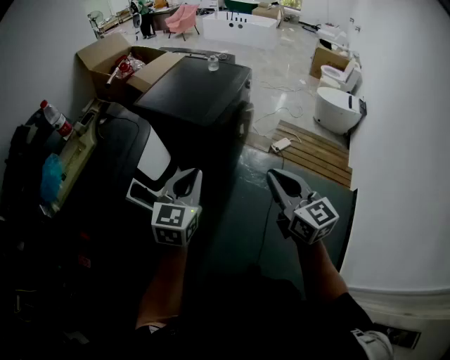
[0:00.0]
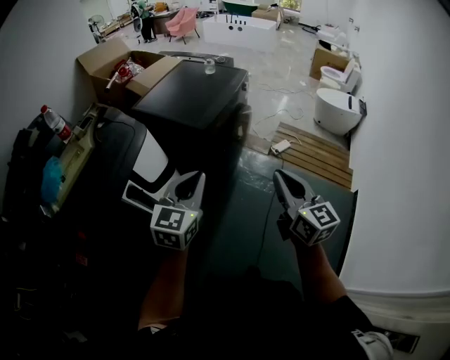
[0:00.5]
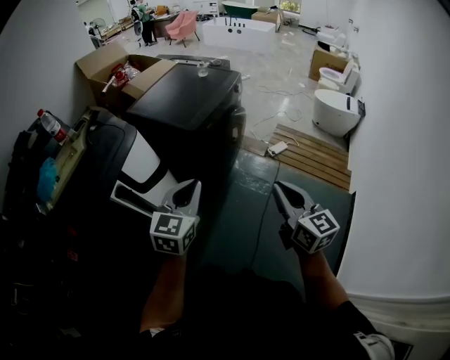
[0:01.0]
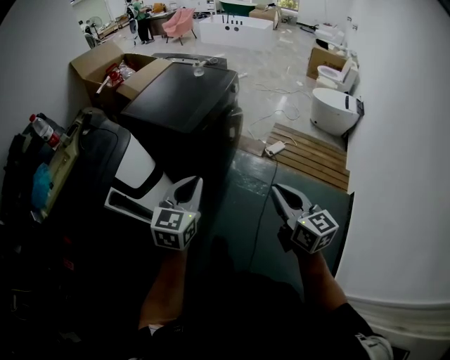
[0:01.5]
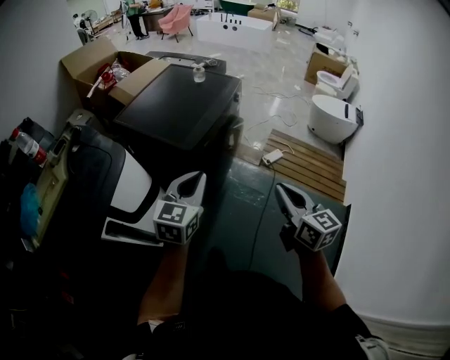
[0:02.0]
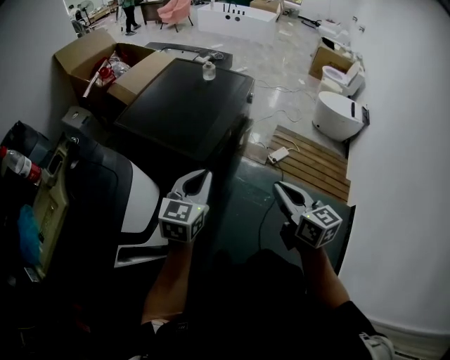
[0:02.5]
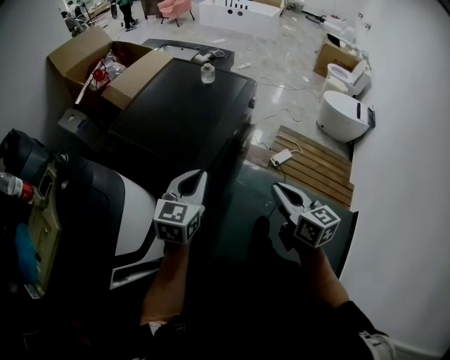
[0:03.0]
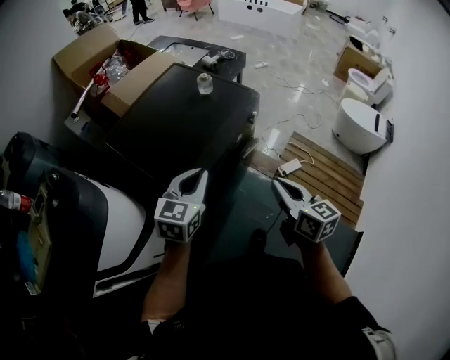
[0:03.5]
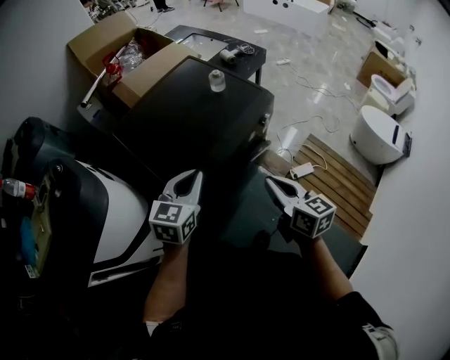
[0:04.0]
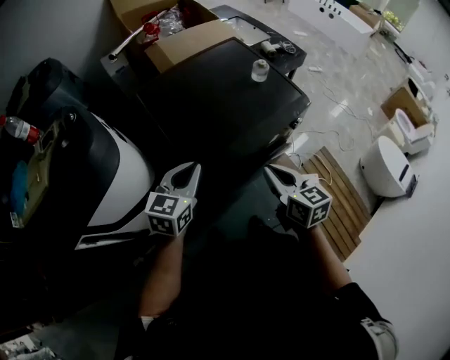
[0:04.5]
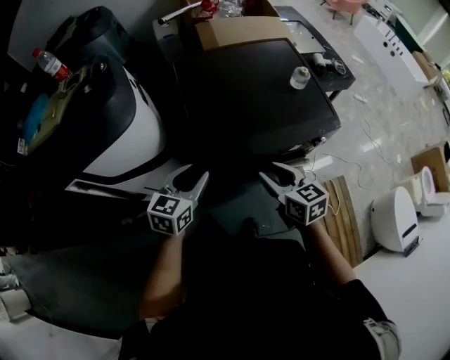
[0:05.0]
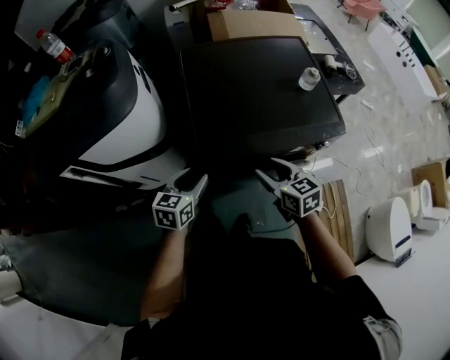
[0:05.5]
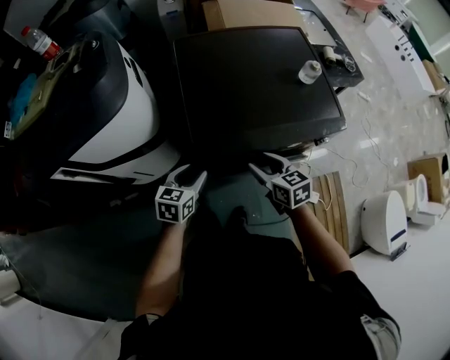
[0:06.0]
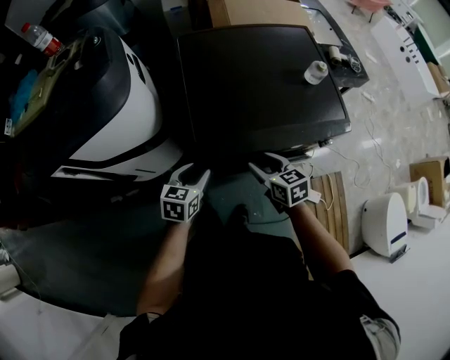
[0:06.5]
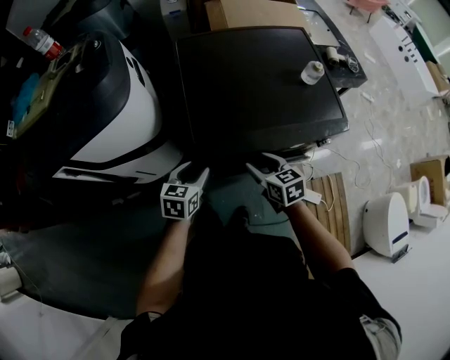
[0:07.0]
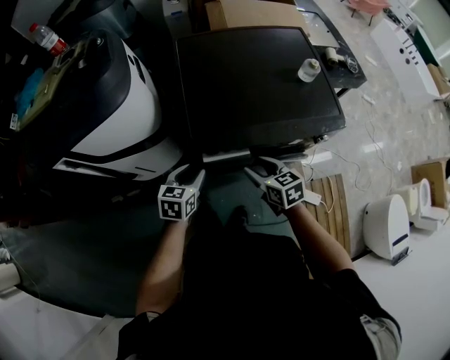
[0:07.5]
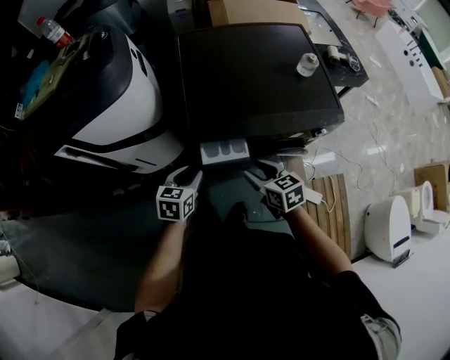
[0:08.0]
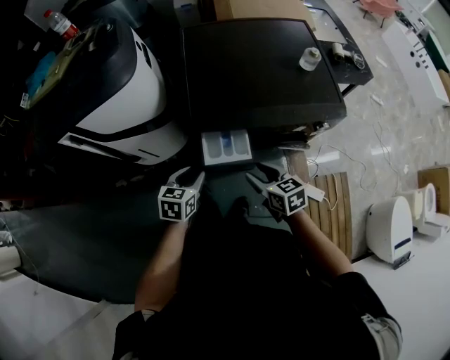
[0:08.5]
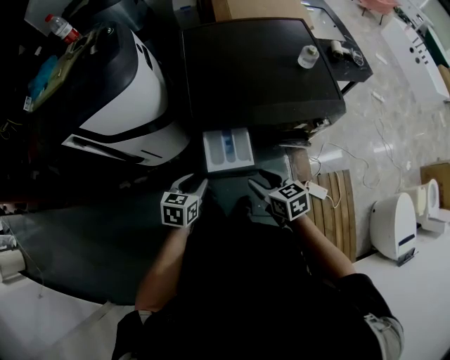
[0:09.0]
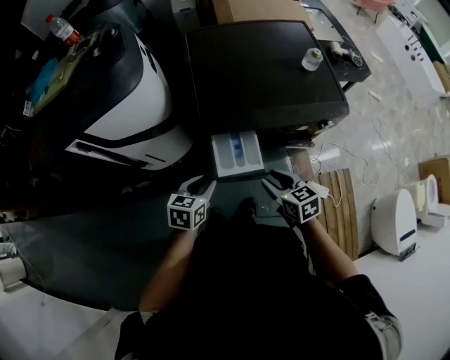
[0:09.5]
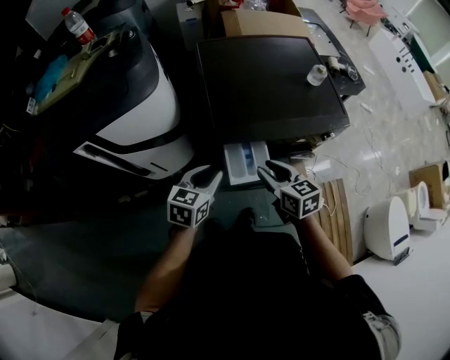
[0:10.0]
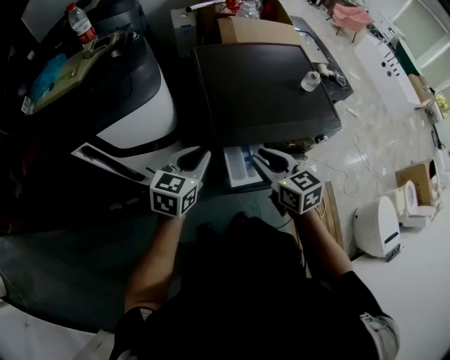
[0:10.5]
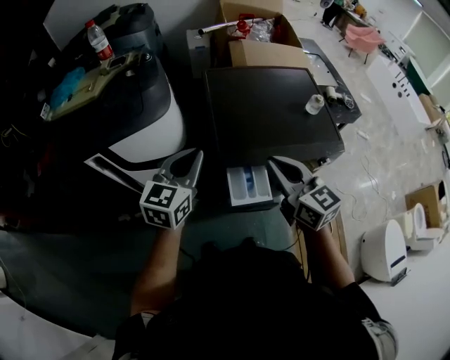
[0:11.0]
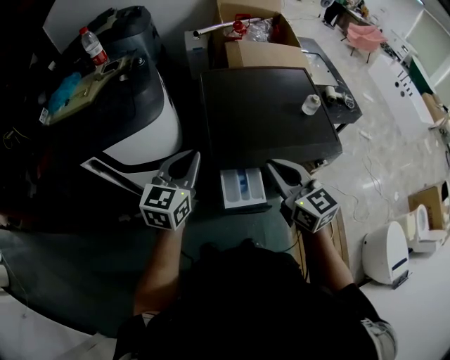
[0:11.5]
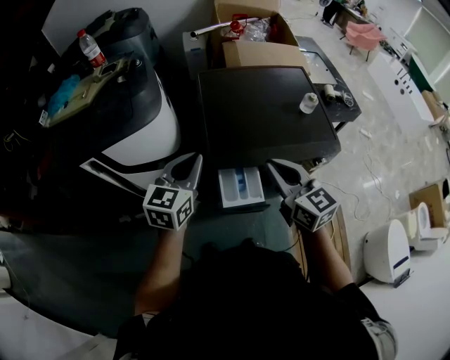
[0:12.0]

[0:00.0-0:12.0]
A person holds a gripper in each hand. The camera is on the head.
0:00.0 to 0:02.0: Both grippers travel together forward and to the right, some 15 cm.
0:02.0 to 0:04.0: The two grippers go approximately 35 cm forward. The right gripper swivels approximately 20 degrees.
0:04.0 to 0:06.0: The right gripper changes place by some 20 cm, changes its angle by some 50 degrees, and opens its fingers. The left gripper shifts approximately 20 cm downward, changes its angle by roughly 40 degrees, and opens.
0:06.0 to 0:08.0: The grippers both shift backward by about 5 cm.
0:08.0 to 0:10.0: The right gripper goes about 10 cm upward and to the left, while the left gripper is displaced upward by some 10 cm.
0:10.0 to 0:12.0: The grippers both shift upward by some 15 cm. The left gripper swivels approximately 20 degrees, and closes up; the right gripper changes its angle by approximately 20 degrees, and closes up.

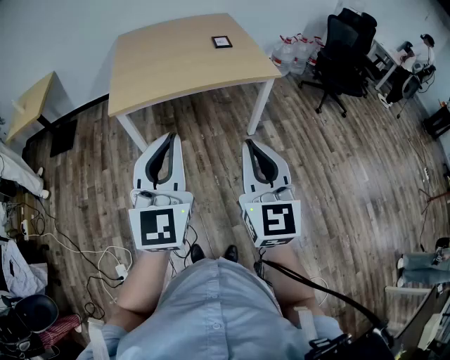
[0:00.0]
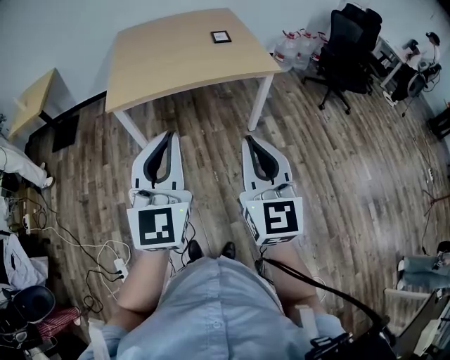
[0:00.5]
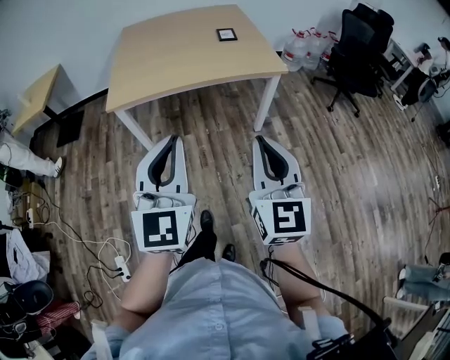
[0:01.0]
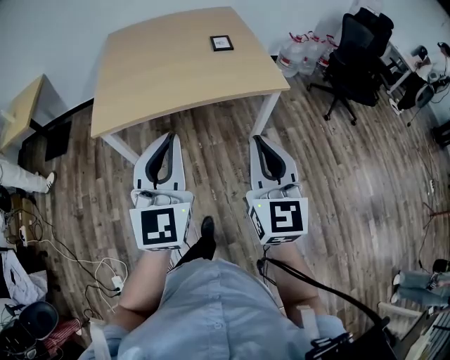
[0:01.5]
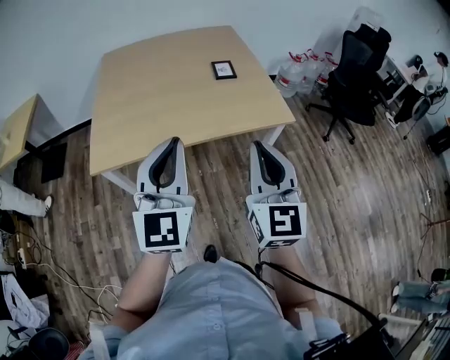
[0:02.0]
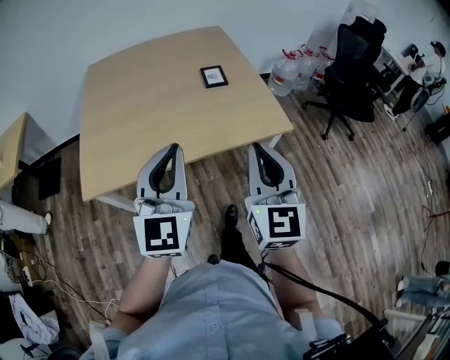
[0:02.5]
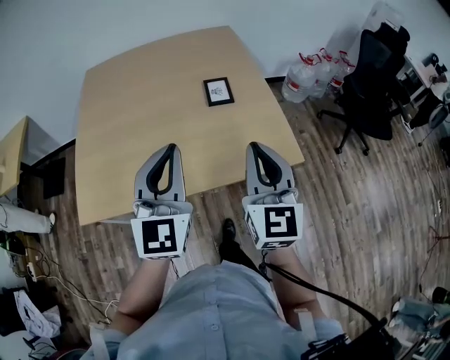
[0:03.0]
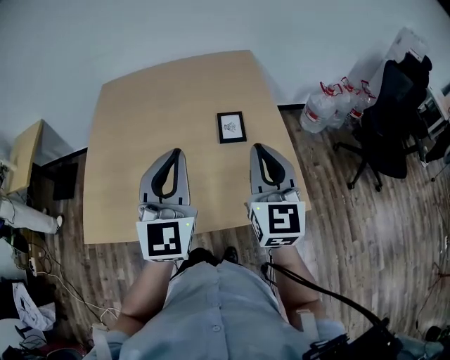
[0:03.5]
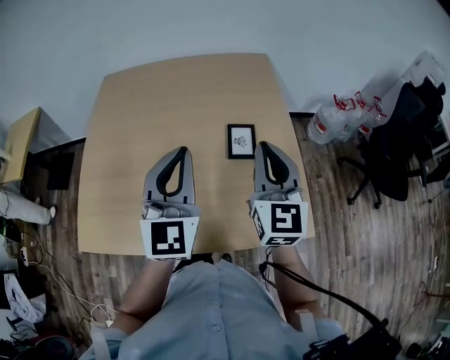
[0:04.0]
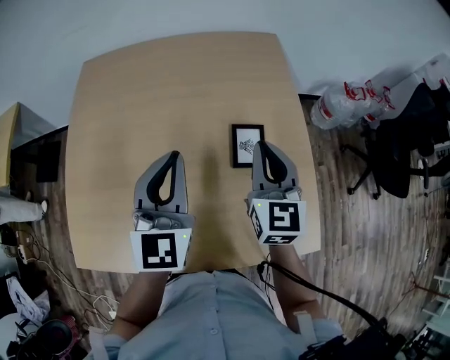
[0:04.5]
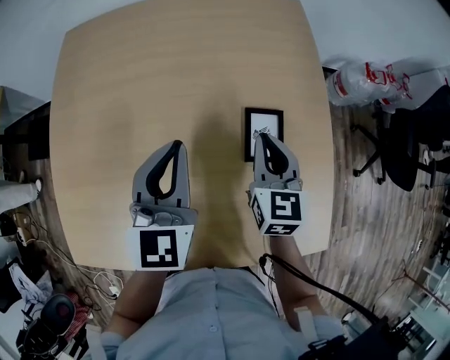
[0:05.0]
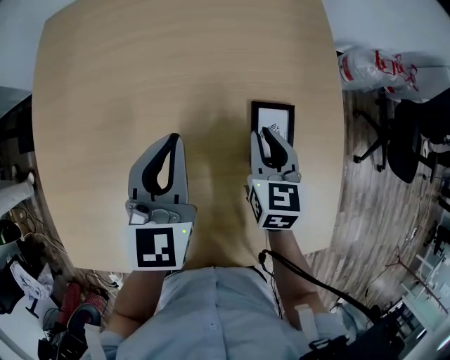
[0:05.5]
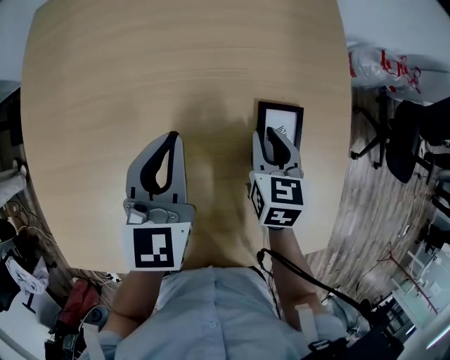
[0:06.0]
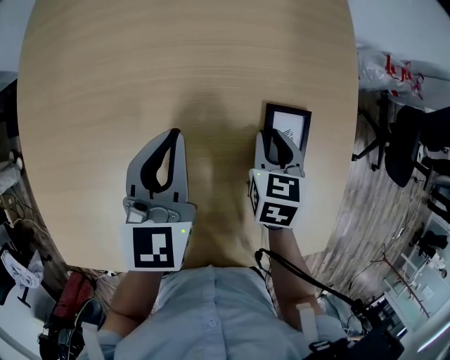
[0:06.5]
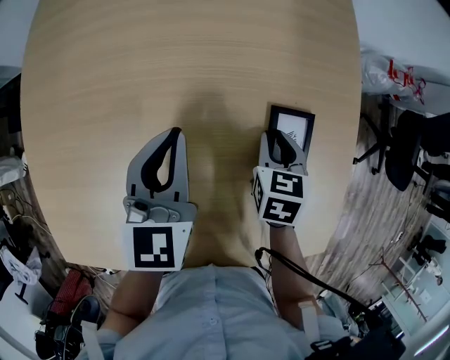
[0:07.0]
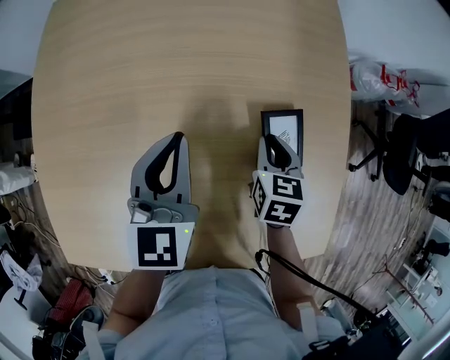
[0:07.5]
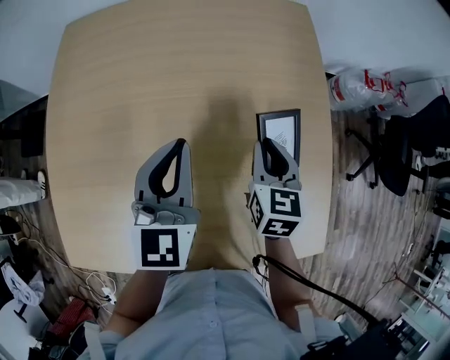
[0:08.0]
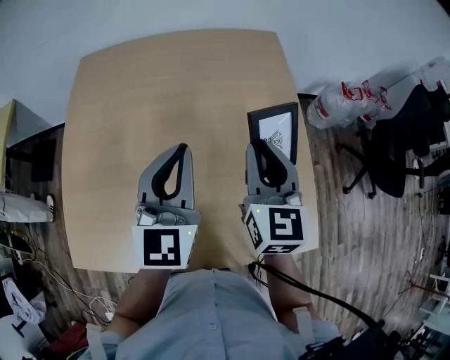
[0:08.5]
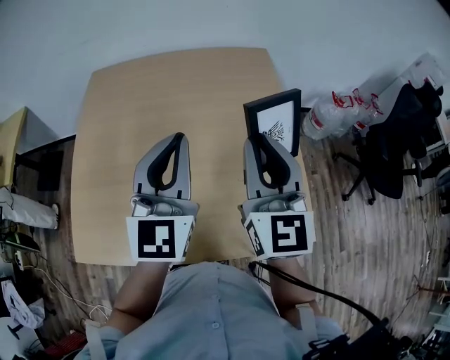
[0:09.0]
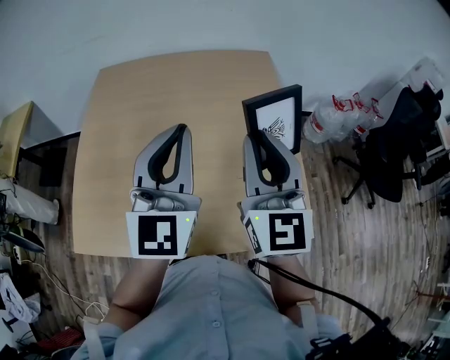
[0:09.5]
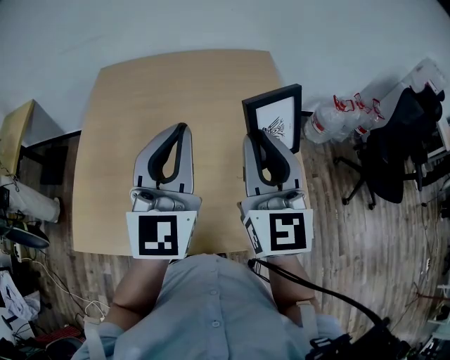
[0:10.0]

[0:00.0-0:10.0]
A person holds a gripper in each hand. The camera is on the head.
0:00.0 to 0:02.0: Both grippers travel together forward, approximately 25 cm.
0:02.0 to 0:04.0: Both grippers move forward, approximately 40 cm.
0:04.0 to 0:06.0: The right gripper is displaced downward and forward by roughly 25 cm, points its fingers roughly 40 degrees further downward, and opens its fingers; the left gripper heads downward, forward and to the left, covering about 20 cm, and rotates roughly 30 degrees.
0:06.0 to 0:08.0: The grippers both shift upward by about 5 cm.
0:08.0 to 0:10.0: The left gripper moves upward, backward and to the right, some 20 cm, and changes its angle by about 20 degrees, while the right gripper travels upward and backward by some 25 cm, and angles its fingers upward, by roughly 40 degrees.

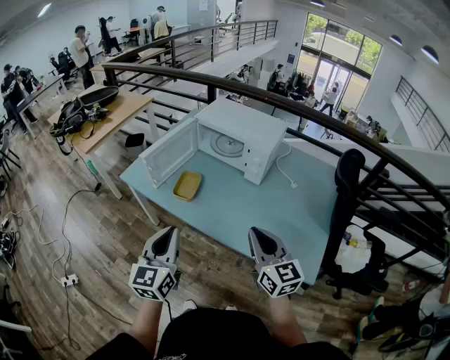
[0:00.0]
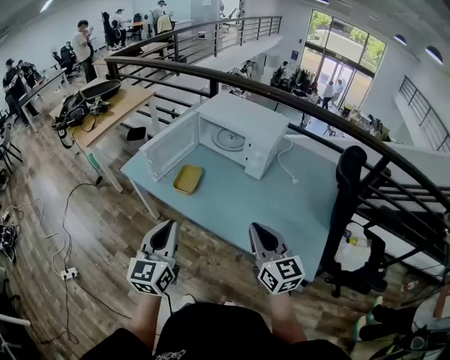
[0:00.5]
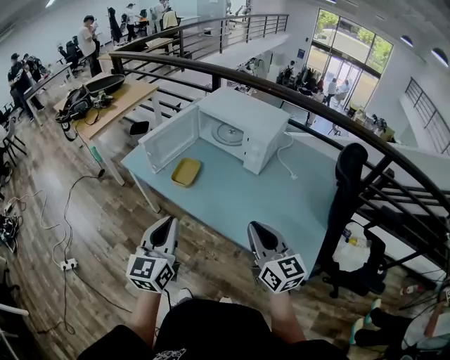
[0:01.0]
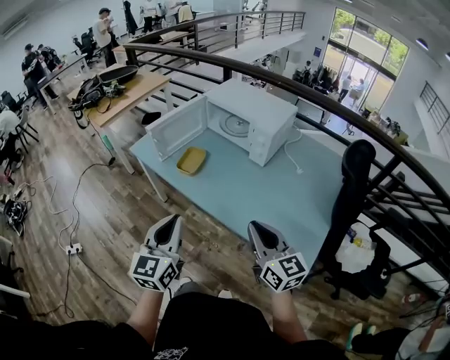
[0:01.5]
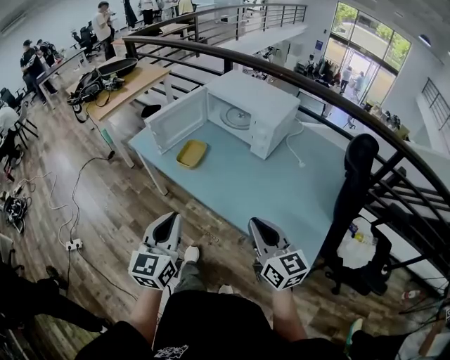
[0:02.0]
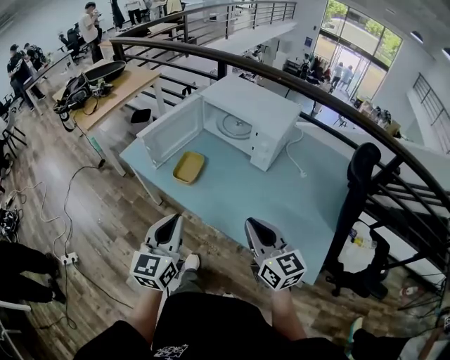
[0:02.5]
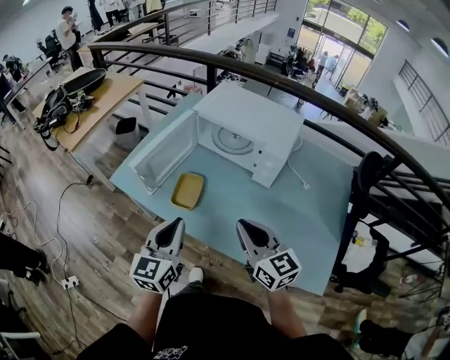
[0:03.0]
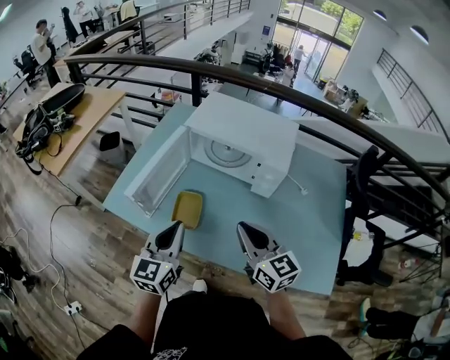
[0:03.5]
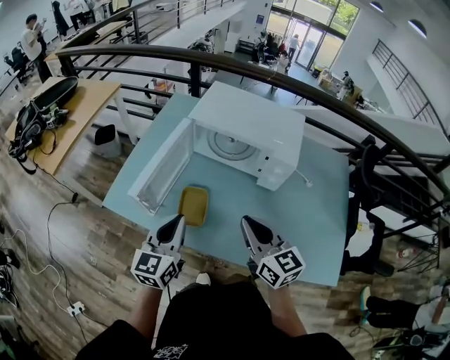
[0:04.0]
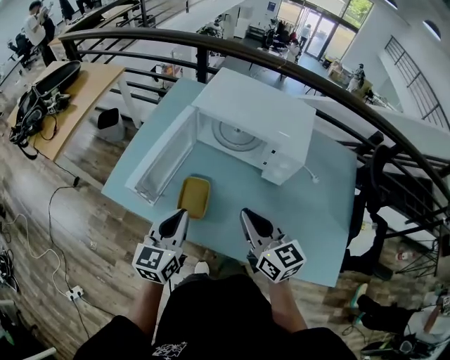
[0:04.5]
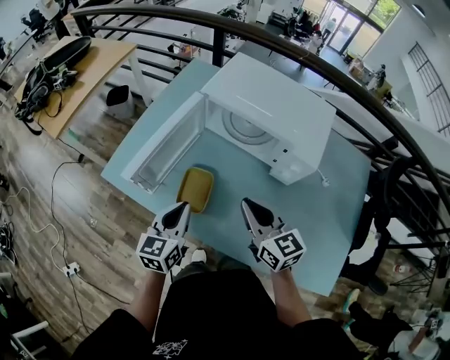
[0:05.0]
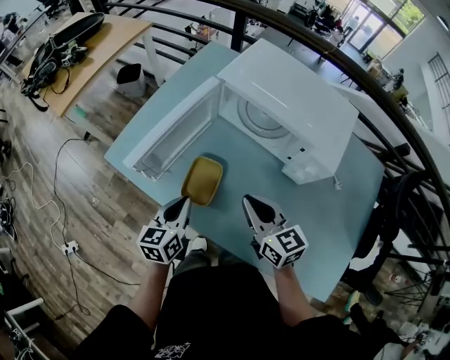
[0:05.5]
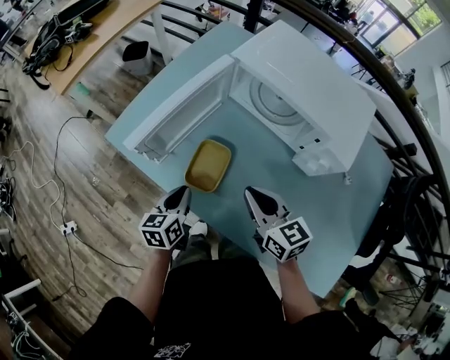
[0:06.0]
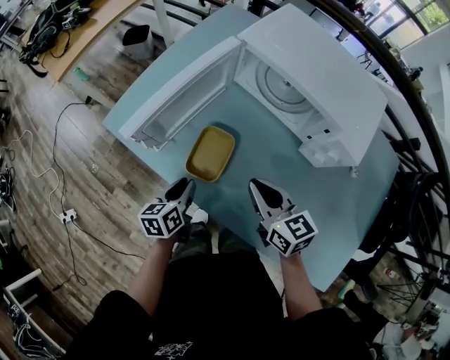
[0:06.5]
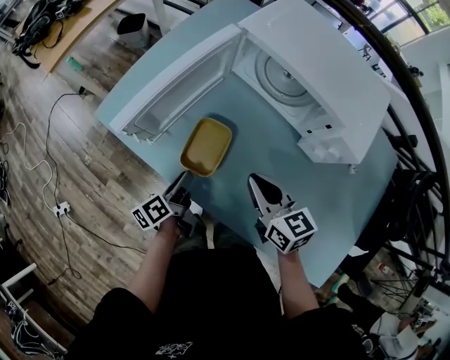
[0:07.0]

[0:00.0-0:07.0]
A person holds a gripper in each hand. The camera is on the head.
0:00.0 to 0:02.0: The left gripper shifts about 10 cm backward and to the right, while the right gripper moves backward, approximately 5 cm.
0:02.0 to 0:03.5: The right gripper is displaced forward and to the left by some 30 cm, while the left gripper goes roughly 30 cm forward, and turns by roughly 20 degrees.
0:03.5 to 0:05.0: The left gripper shifts roughly 15 cm downward and forward. The right gripper moves forward and downward, about 10 cm.
0:05.0 to 0:07.0: The right gripper shifts some 10 cm downward; the left gripper goes roughly 20 cm downward, and rolls counterclockwise, seen from behind, by about 60 degrees.
